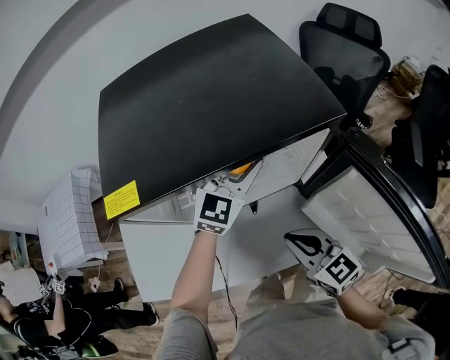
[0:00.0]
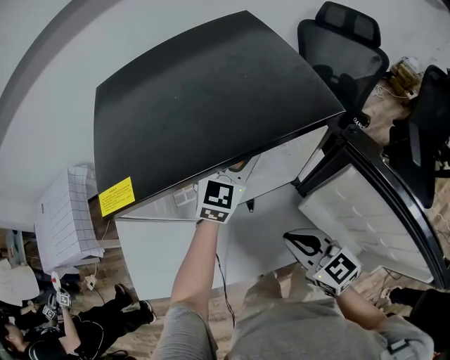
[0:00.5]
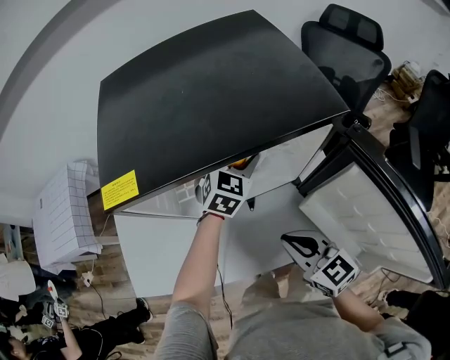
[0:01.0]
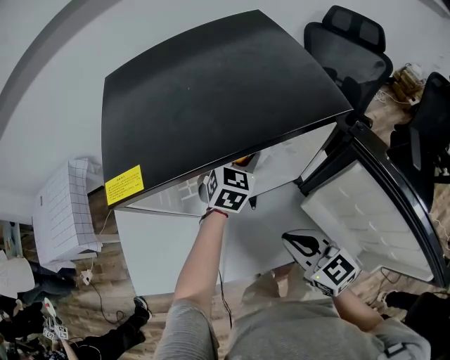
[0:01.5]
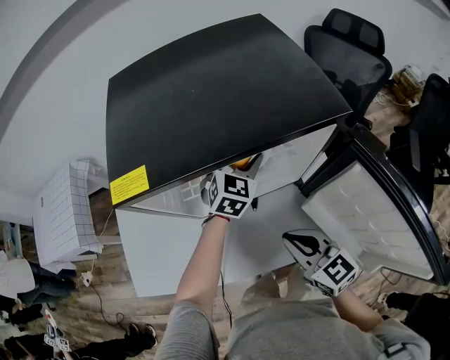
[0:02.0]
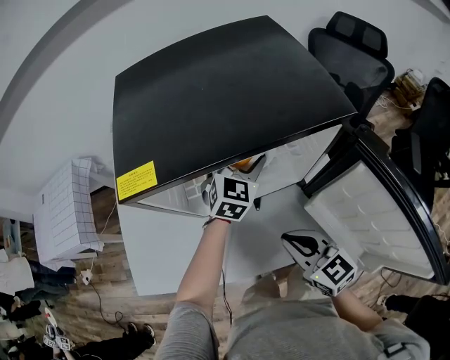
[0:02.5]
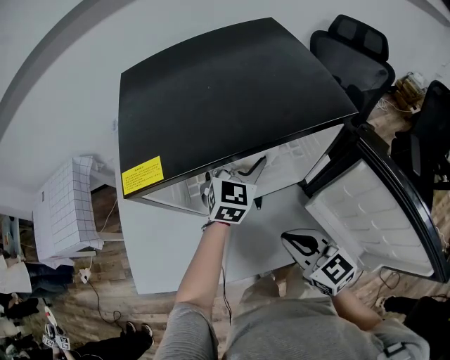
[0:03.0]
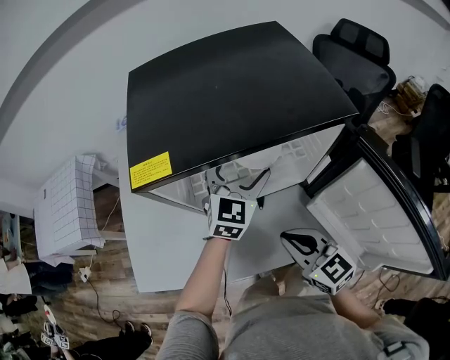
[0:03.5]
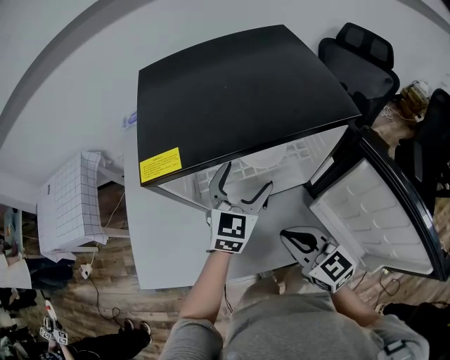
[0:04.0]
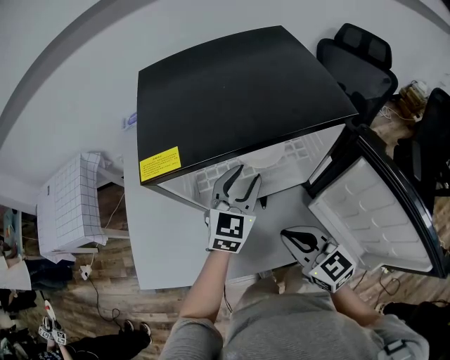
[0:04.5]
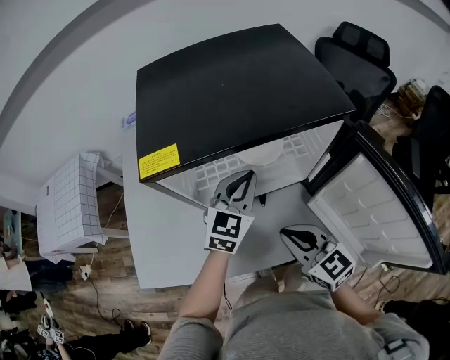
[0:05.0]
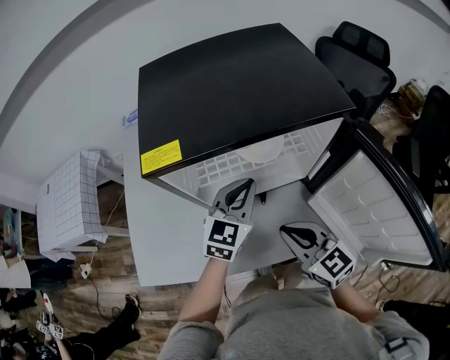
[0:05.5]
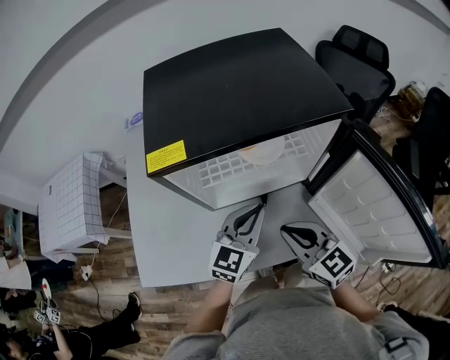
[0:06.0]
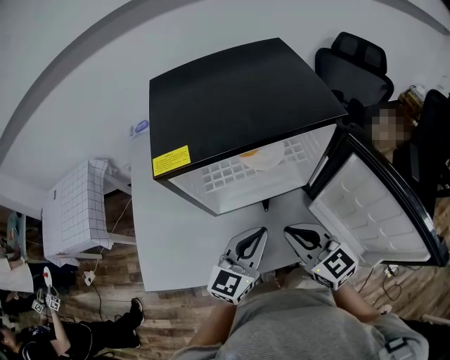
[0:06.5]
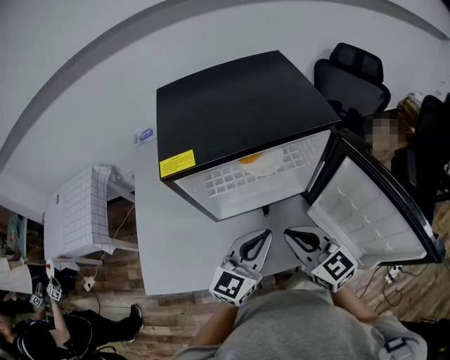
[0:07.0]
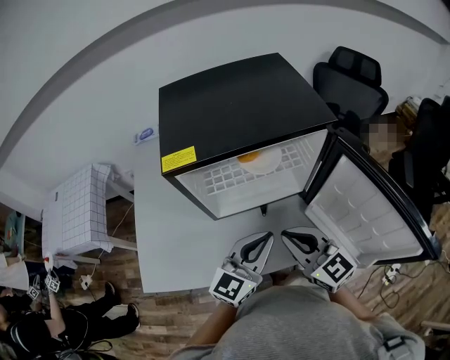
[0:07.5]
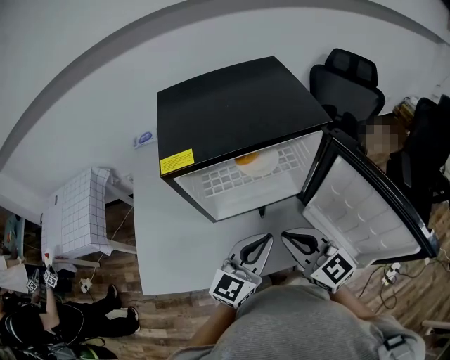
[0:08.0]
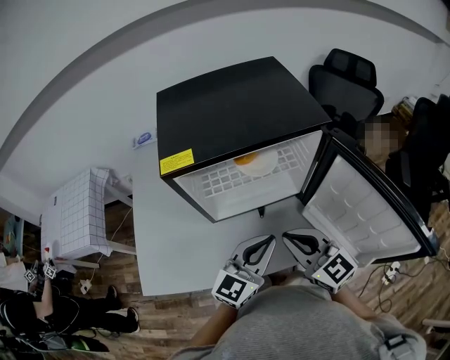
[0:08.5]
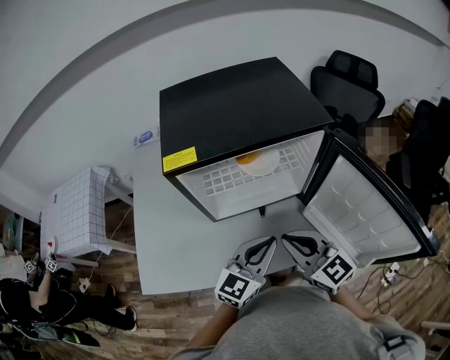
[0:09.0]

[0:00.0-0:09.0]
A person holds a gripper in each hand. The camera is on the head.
0:00.0 to 0:02.0: The left gripper is displaced downward by about 5 cm.
0:02.0 to 0:04.5: The left gripper moves backward and to the left, roughly 10 cm.
0:04.5 to 0:07.0: The left gripper is displaced backward by some 15 cm, changes its angle by some 20 degrees, and closes. Meanwhile the right gripper ends up about 5 cm from where it was.
0:07.0 to 0:09.0: There are only small adjustments of the grippers.

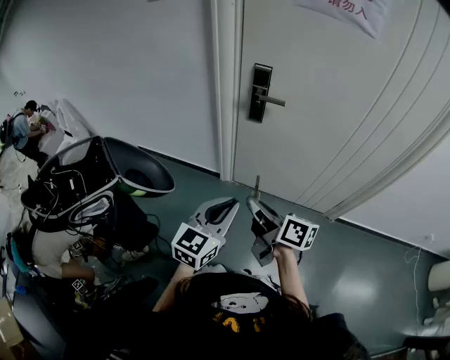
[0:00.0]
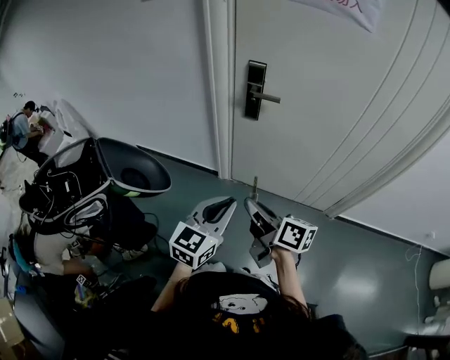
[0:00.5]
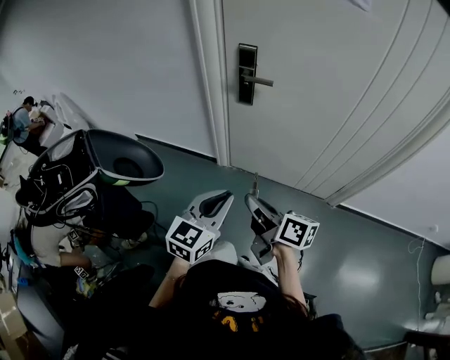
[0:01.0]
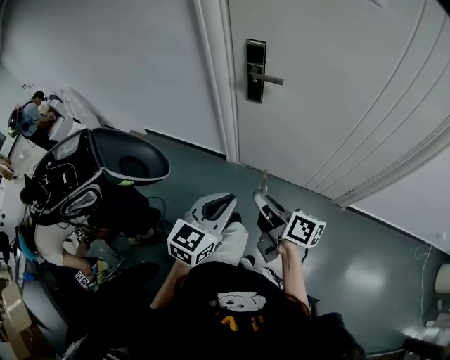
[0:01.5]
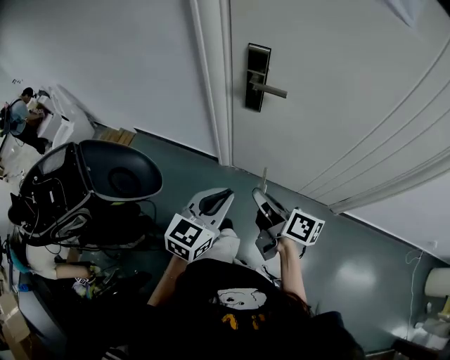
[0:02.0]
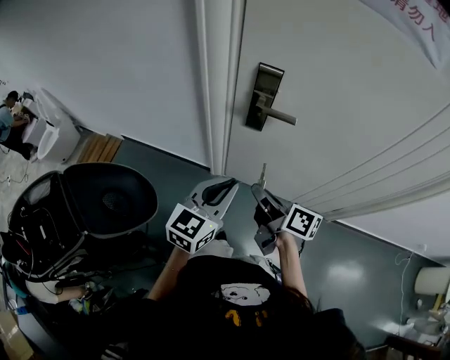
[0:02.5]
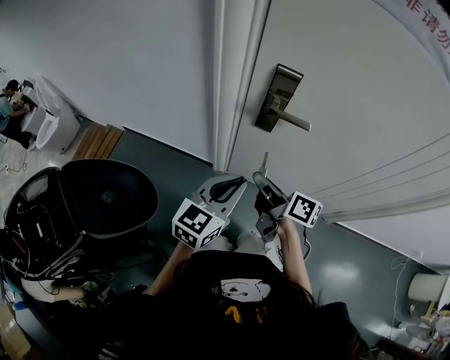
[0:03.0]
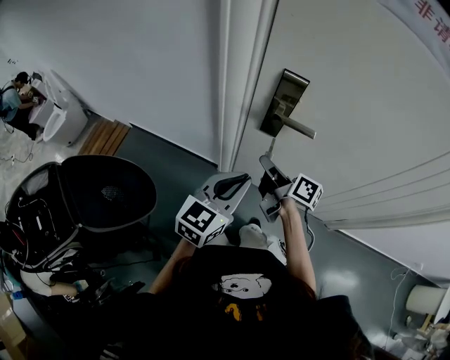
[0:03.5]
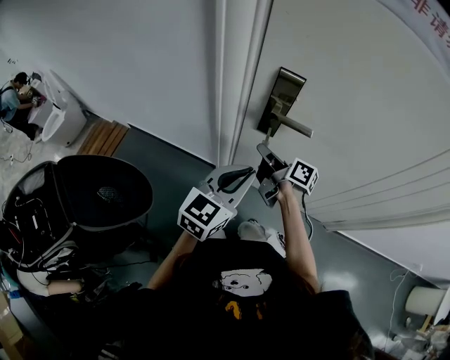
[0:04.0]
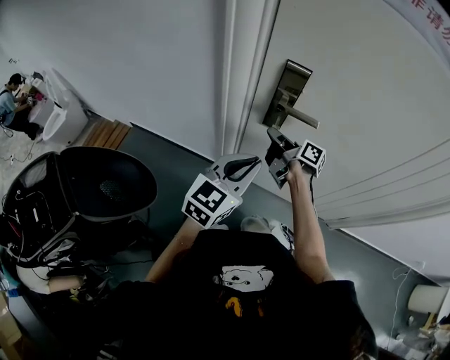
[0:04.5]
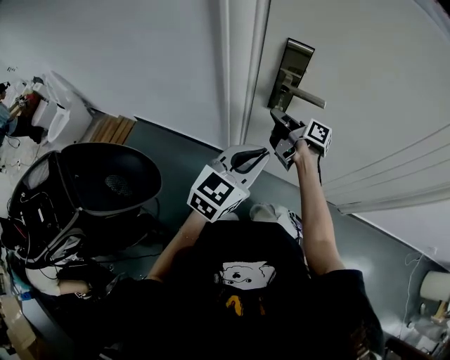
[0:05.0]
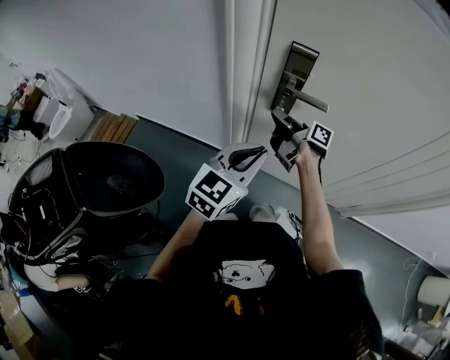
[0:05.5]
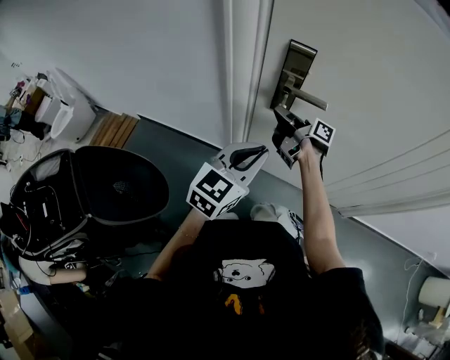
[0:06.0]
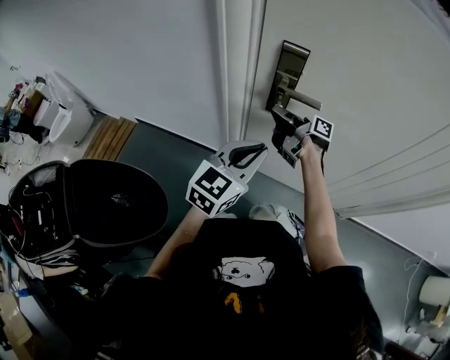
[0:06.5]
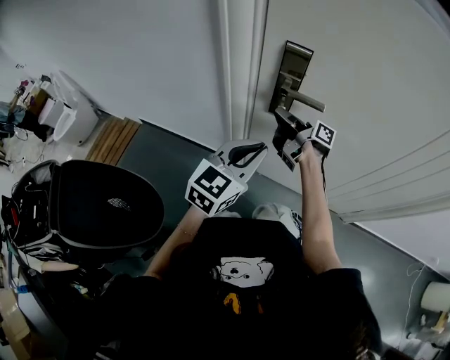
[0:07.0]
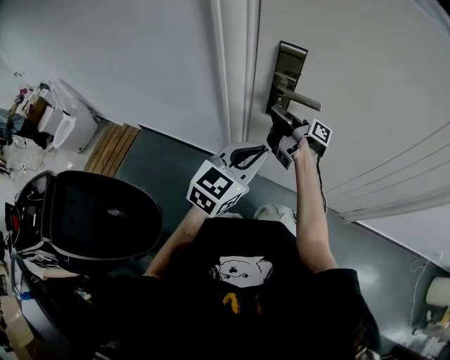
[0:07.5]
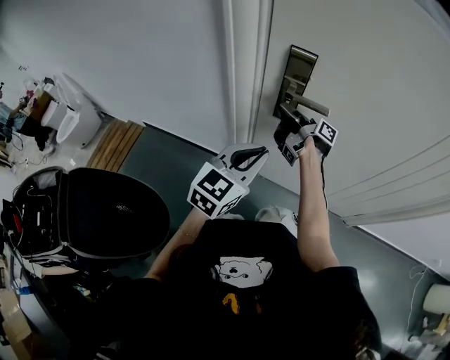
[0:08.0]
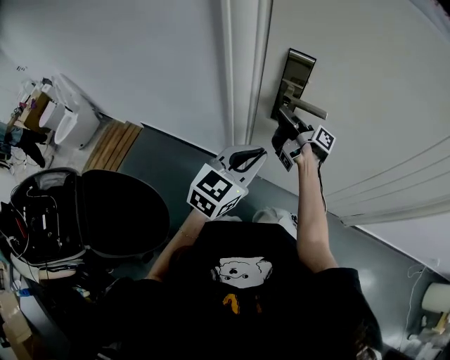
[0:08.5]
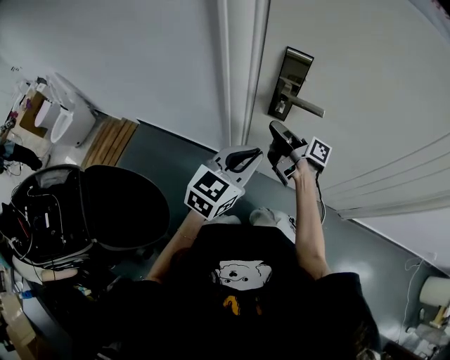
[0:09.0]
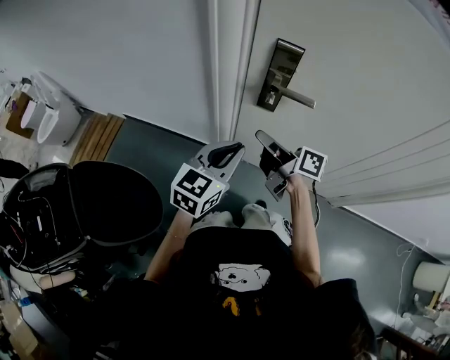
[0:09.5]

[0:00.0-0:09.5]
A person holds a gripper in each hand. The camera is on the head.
0:00.0 to 0:02.0: The right gripper is displaced forward, to the right and downward by about 15 cm; the left gripper moves forward and downward, about 15 cm.
0:02.0 to 0:04.0: Both grippers move forward, about 25 cm.
0:04.0 to 0:05.5: There are only small adjustments of the grippers.
0:05.5 to 0:07.5: The grippers make only small movements.
0:07.5 to 0:09.5: The right gripper heads backward, covering some 10 cm, and rotates about 30 degrees, while the left gripper shifts by roughly 5 cm.

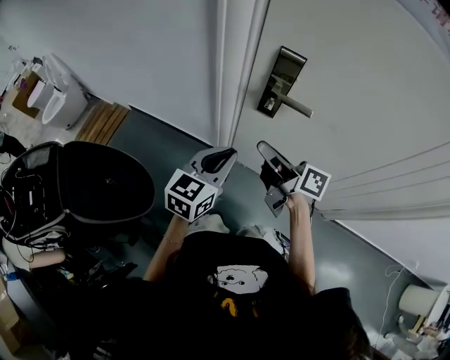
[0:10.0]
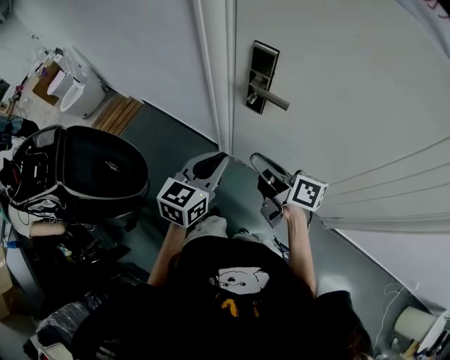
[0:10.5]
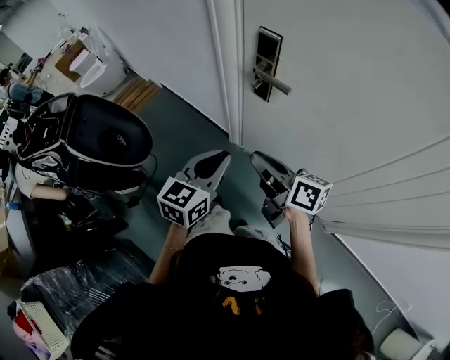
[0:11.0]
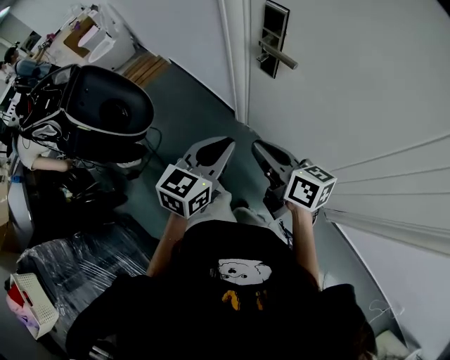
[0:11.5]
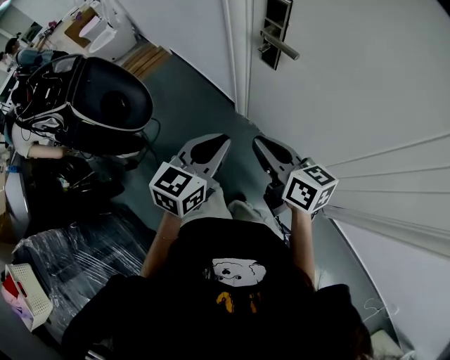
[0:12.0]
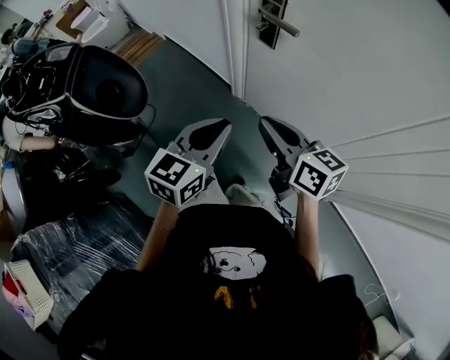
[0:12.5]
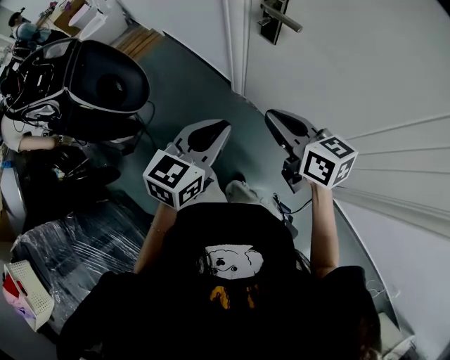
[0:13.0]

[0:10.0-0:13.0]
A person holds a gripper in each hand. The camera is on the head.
0:10.0 to 0:11.5: Both grippers travel together backward and to the right, roughly 20 cm. The left gripper rotates some 20 degrees; the right gripper changes its angle by about 30 degrees.
0:11.5 to 0:13.0: The grippers stay close to where they were, moving slightly.

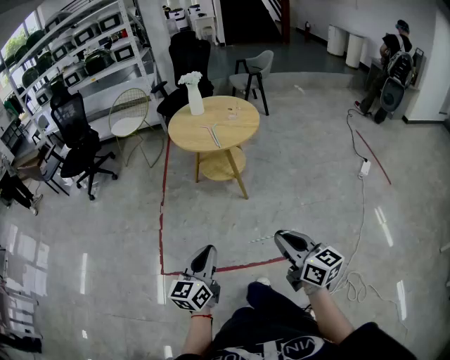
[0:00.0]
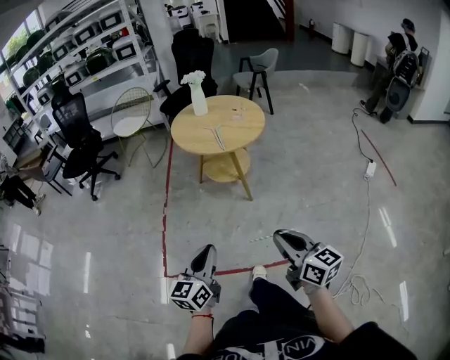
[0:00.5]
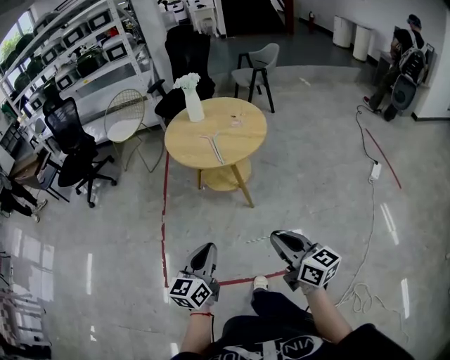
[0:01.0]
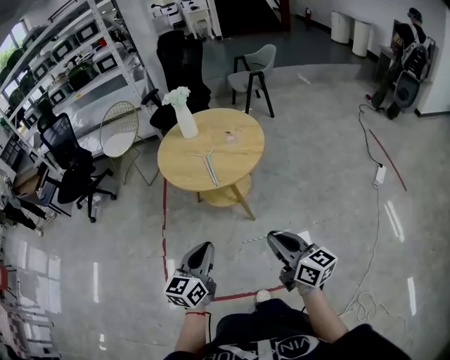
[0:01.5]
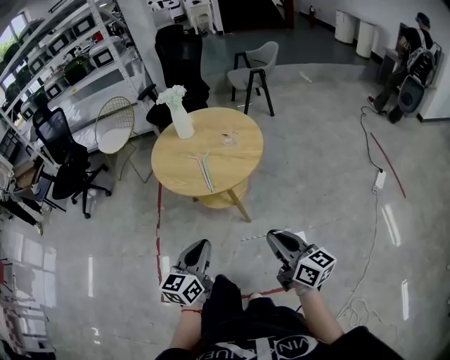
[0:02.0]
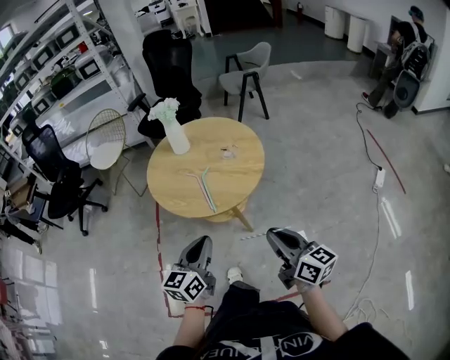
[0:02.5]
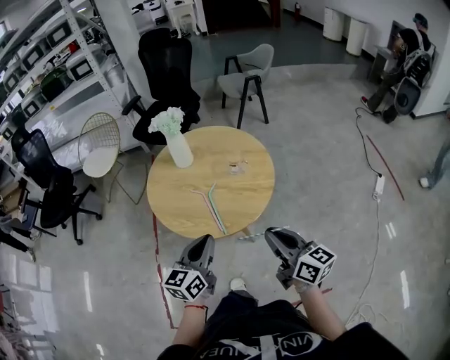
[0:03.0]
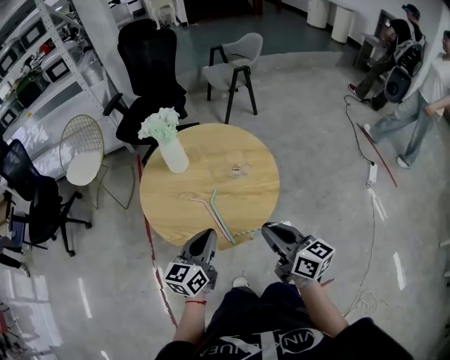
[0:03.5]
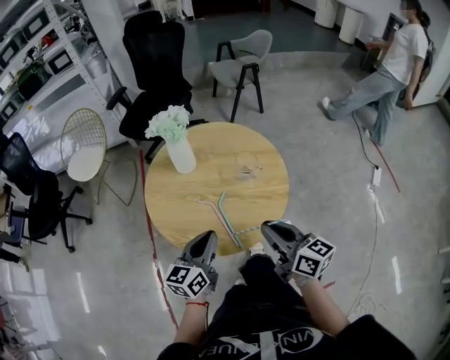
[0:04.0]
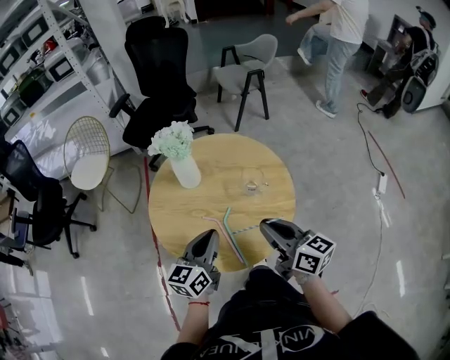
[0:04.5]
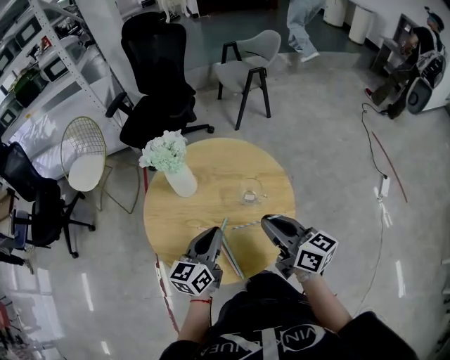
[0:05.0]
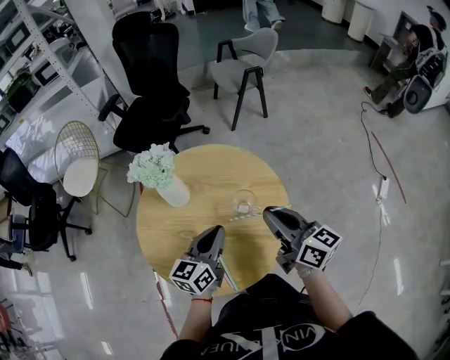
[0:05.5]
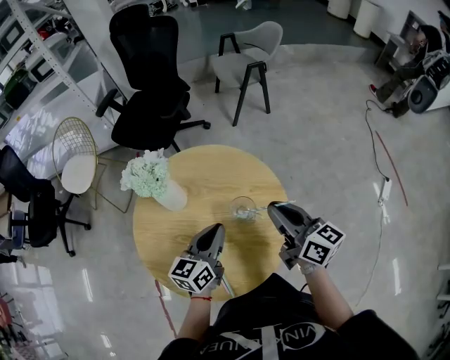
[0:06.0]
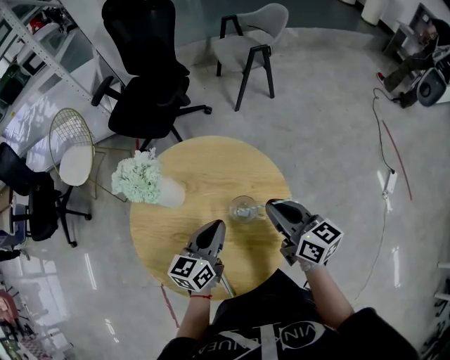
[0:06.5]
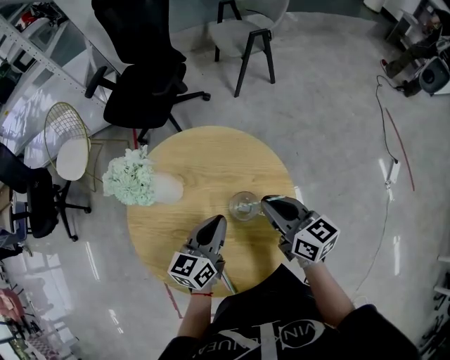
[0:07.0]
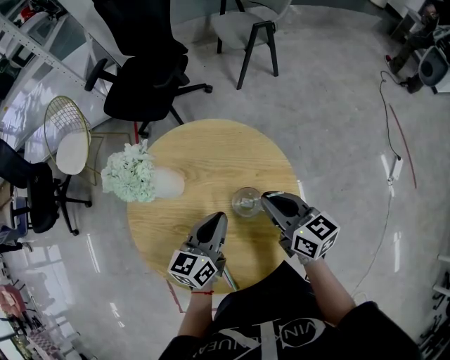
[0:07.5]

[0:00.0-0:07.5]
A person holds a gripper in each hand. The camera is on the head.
0:00.0 to 0:02.0: The grippers both shift forward by some 35 cm.
0:02.0 to 0:04.0: The left gripper travels forward by about 35 cm; the right gripper moves forward and to the left, about 35 cm.
0:04.0 to 0:05.5: The left gripper moves forward and to the right, roughly 20 cm. Meanwhile the right gripper shifts roughly 20 cm forward.
0:05.5 to 0:07.5: The left gripper shifts approximately 5 cm forward. Meanwhile the right gripper is displaced downward and forward by about 15 cm.
